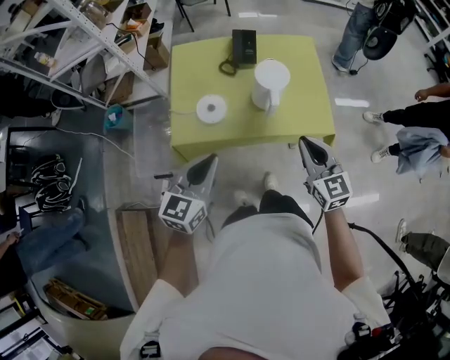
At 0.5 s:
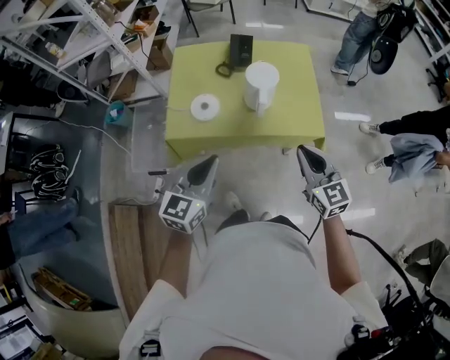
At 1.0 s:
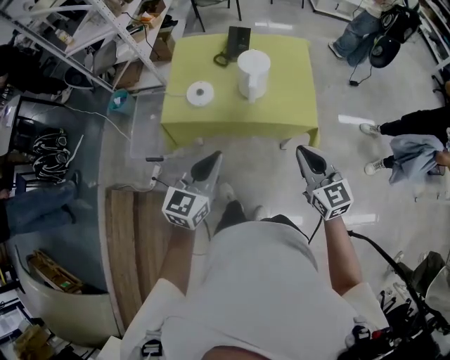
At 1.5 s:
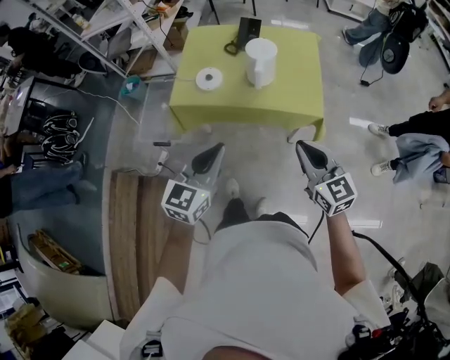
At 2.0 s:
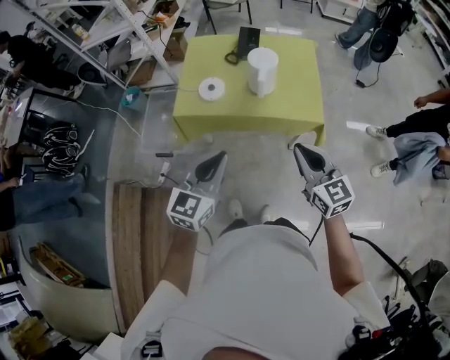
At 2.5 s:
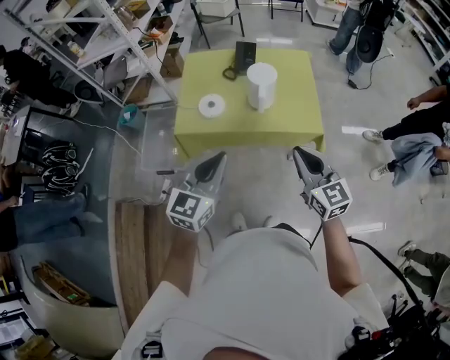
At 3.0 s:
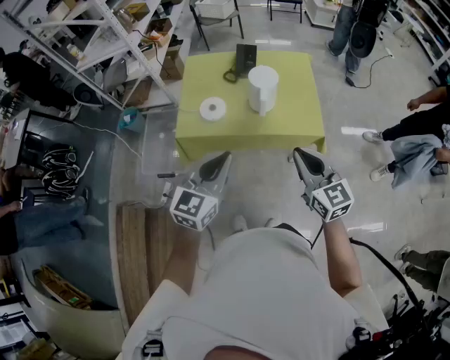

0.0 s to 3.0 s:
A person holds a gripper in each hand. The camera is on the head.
0.0 to 1.5 s: The two grippers go approximately 20 cm backward and to the right.
1.5 to 3.0 s: The right gripper shifts approximately 5 cm to the left. Meanwhile the left gripper moves forward, some 5 cm.

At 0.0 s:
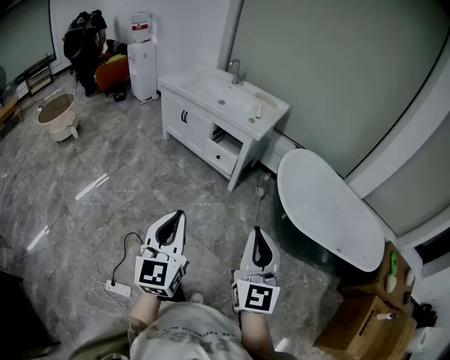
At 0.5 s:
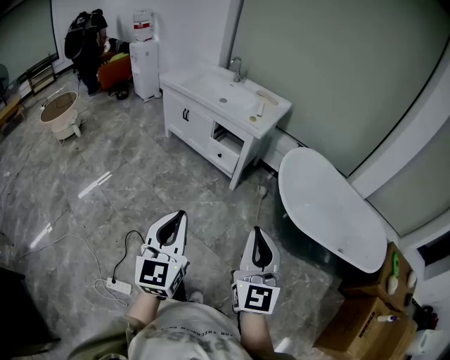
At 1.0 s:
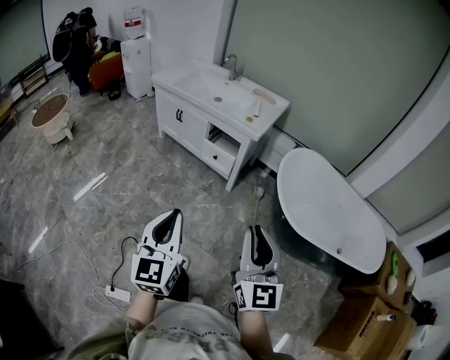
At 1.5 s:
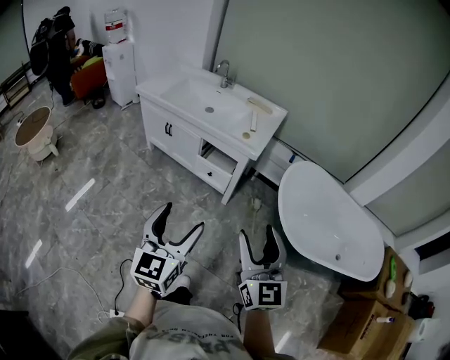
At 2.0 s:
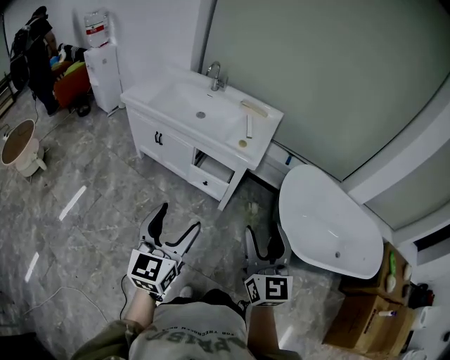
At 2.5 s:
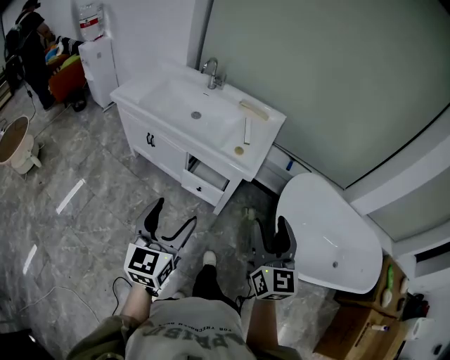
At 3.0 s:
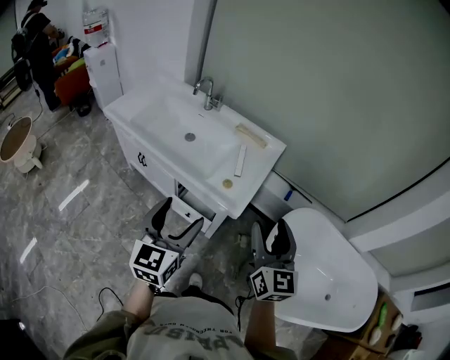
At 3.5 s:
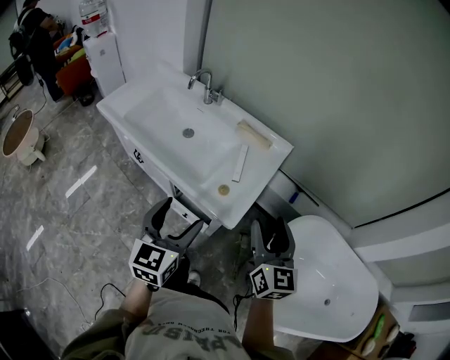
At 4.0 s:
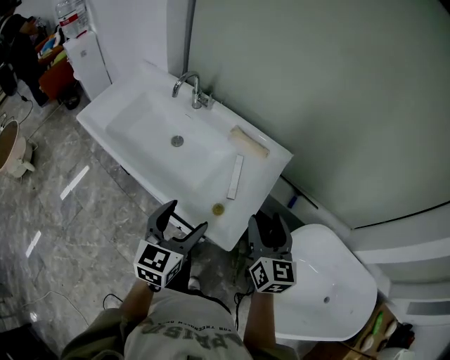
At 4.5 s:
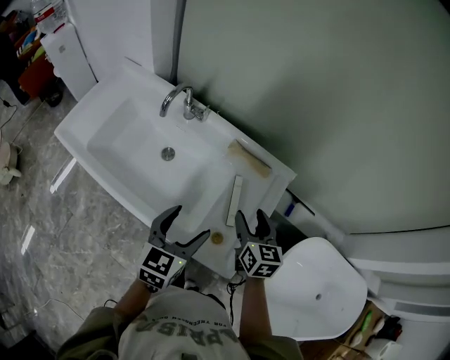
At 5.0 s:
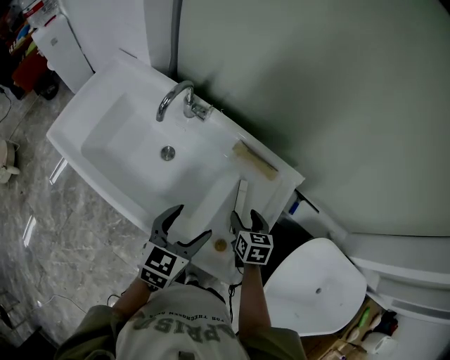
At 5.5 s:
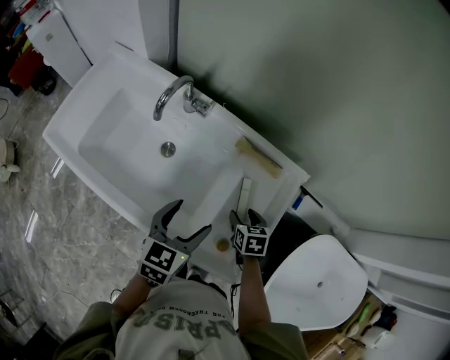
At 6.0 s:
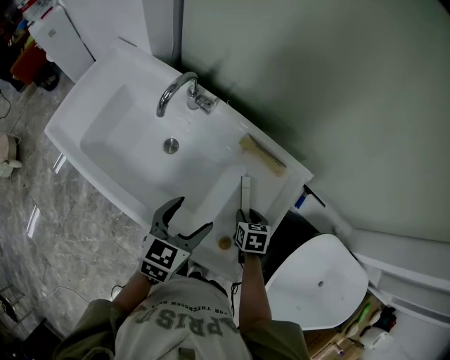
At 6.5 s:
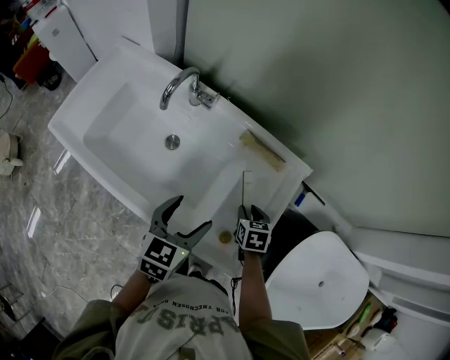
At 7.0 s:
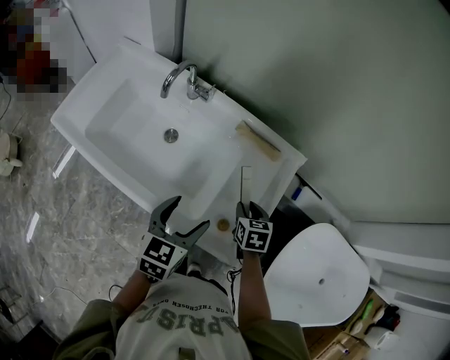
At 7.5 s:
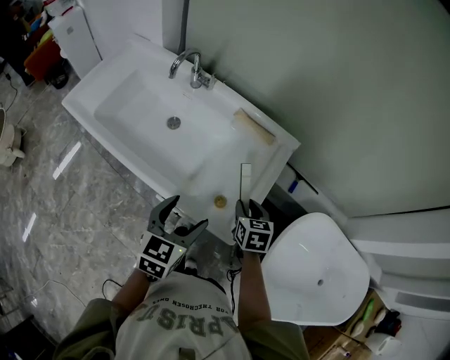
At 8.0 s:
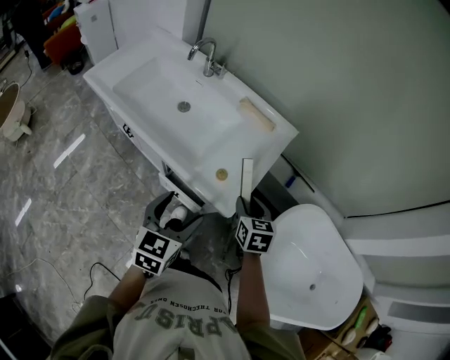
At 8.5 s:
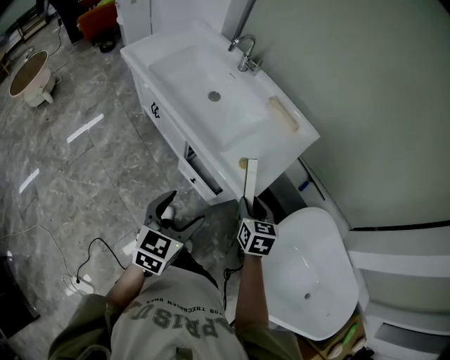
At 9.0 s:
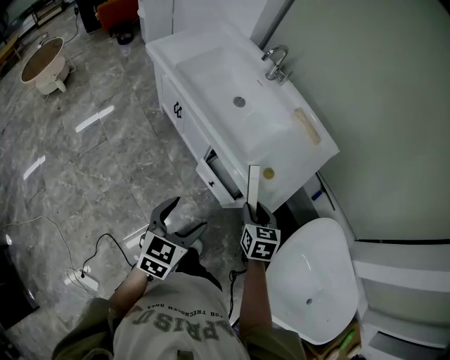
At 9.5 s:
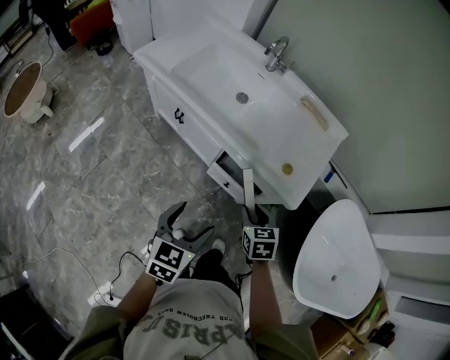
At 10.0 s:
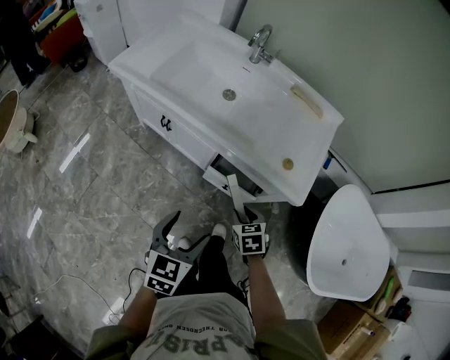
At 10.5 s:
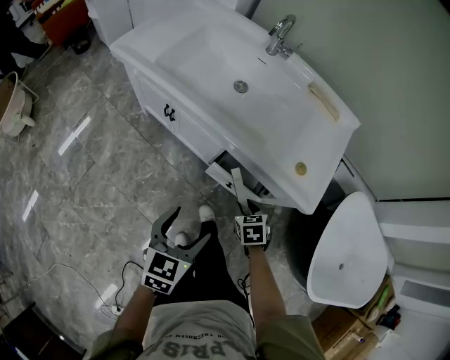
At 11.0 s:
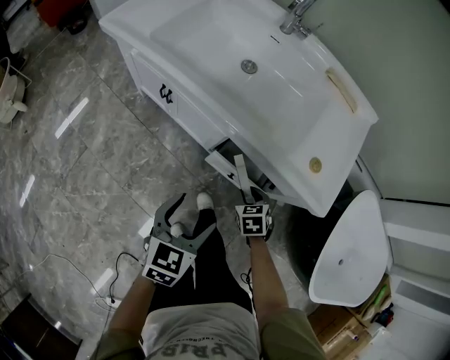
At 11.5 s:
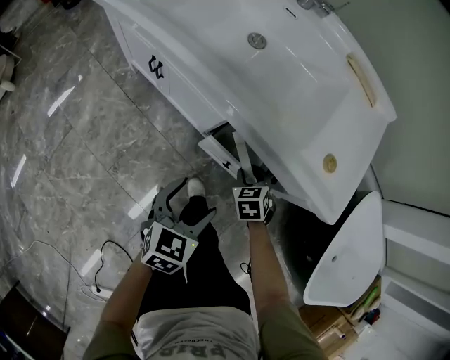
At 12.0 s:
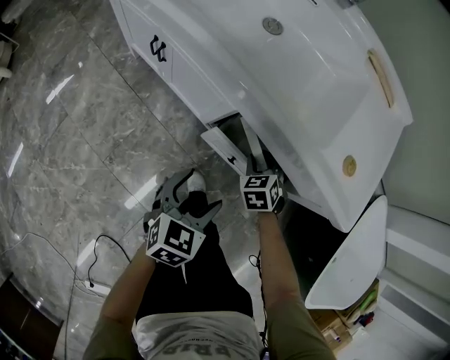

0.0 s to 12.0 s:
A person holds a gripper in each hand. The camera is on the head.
0.0 to 2.0 s: The grippers both shift forward by approximately 35 cm. The right gripper opens up. Meanwhile the left gripper opens its fingers.
2.0 to 4.0 s: Both grippers are carried forward, approximately 50 cm.
4.0 to 6.0 s: The right gripper heads downward and forward, covering roughly 30 cm, tips its fingers downward by roughly 50 degrees, and closes, while the left gripper heads forward and downward, covering roughly 20 cm.
6.0 to 8.0 s: The left gripper goes roughly 25 cm backward. Meanwhile the right gripper travels backward and upward by roughly 25 cm, and changes its angle by some 20 degrees.
8.0 to 10.0 s: The right gripper shifts roughly 30 cm to the left, downward and backward. Meanwhile the left gripper shifts roughly 25 cm to the left and backward.
10.0 to 12.0 s: The right gripper heads downward and forward, covering about 30 cm, and rotates some 20 degrees, while the left gripper is displaced downward by approximately 25 cm.

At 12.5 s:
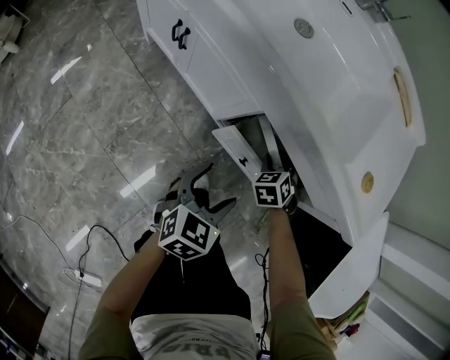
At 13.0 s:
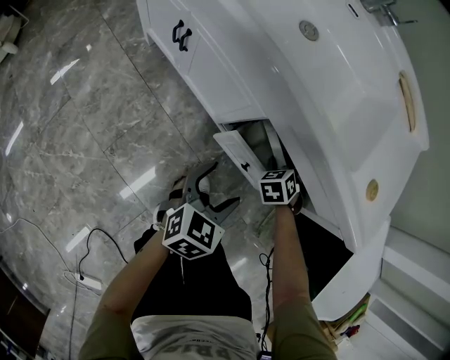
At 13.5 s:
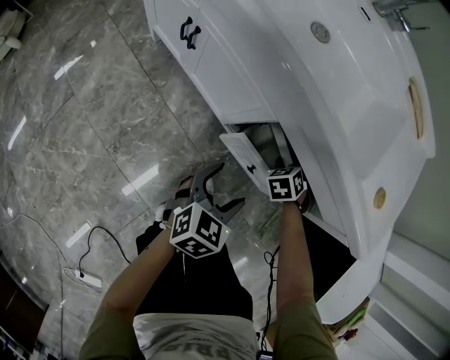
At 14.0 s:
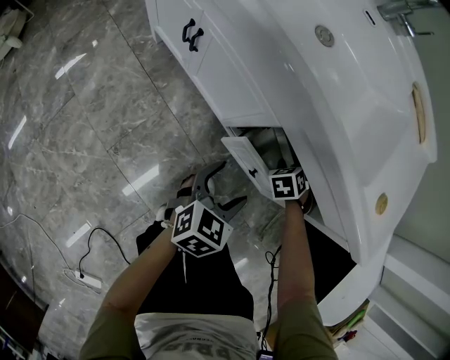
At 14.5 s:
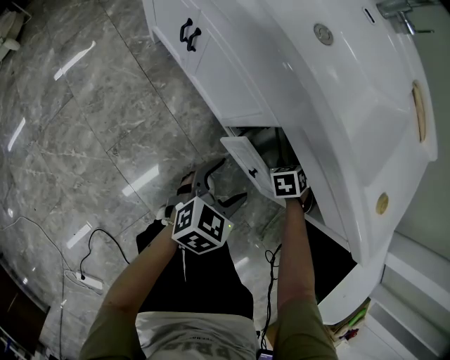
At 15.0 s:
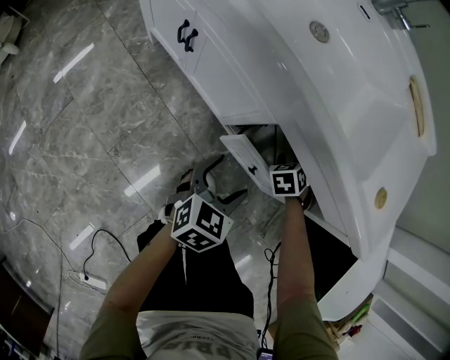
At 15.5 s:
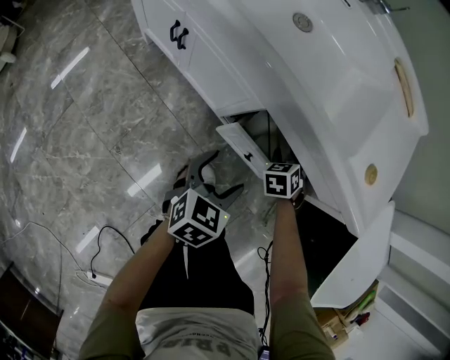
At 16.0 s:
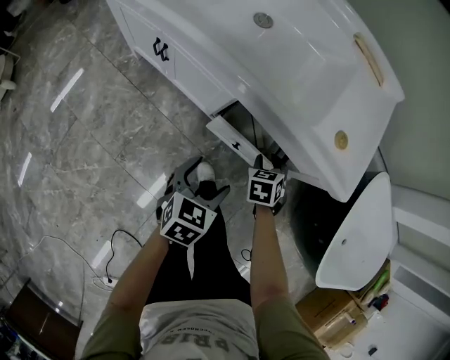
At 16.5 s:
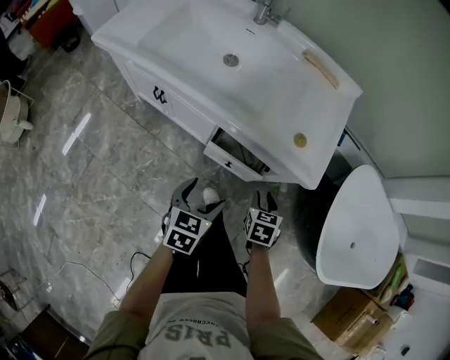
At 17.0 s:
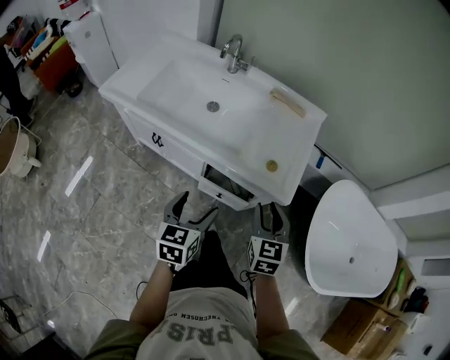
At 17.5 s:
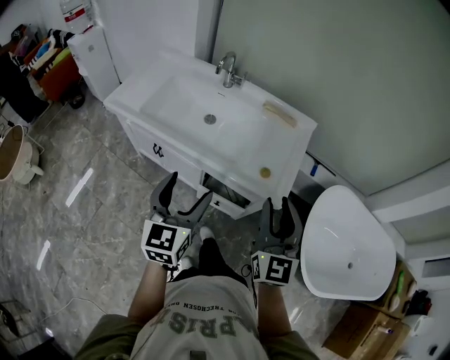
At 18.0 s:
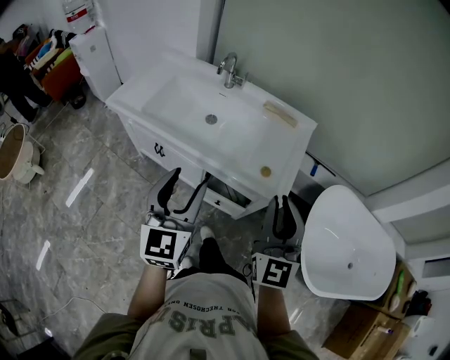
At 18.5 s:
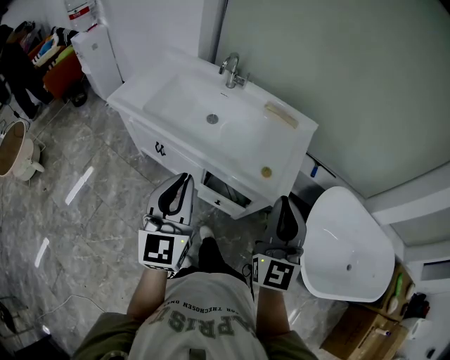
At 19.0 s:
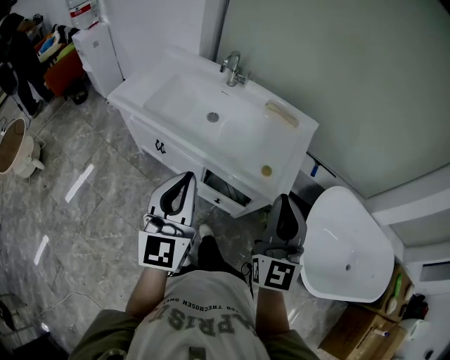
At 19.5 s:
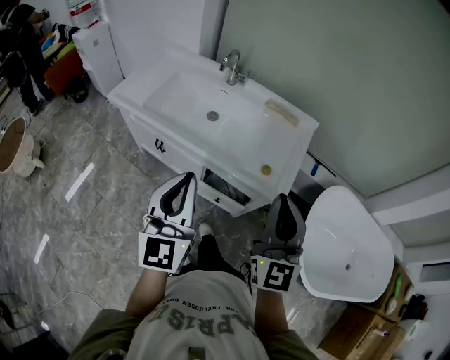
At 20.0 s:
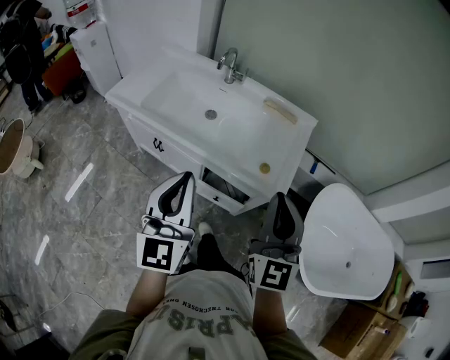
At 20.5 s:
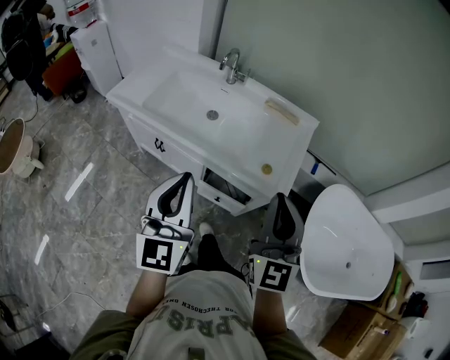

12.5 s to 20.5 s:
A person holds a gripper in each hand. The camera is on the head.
12.5 to 14.5 s: The right gripper heads downward, covering about 5 cm. The left gripper ends up approximately 5 cm from where it was.
14.5 to 16.5 s: The right gripper goes some 35 cm upward, backward and to the right, and twists approximately 50 degrees clockwise, seen from behind. Meanwhile the left gripper heads upward, covering roughly 20 cm.
16.5 to 18.5 s: Both grippers move upward, some 40 cm. The left gripper tilts its fingers roughly 40 degrees upward, and closes its fingers. The right gripper tips its fingers upward by about 60 degrees, and closes its fingers.
18.5 to 20.5 s: There are only small adjustments of the grippers.

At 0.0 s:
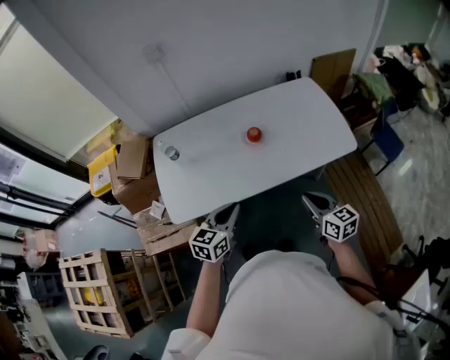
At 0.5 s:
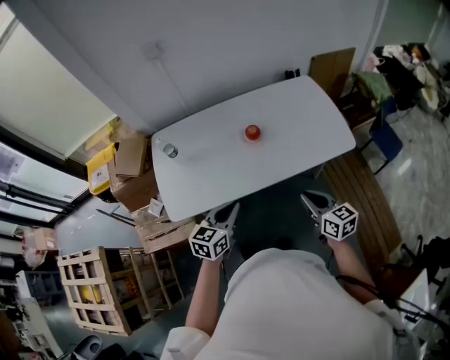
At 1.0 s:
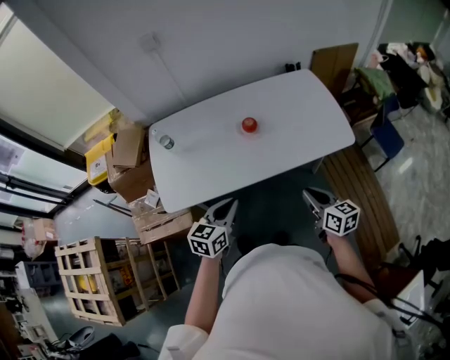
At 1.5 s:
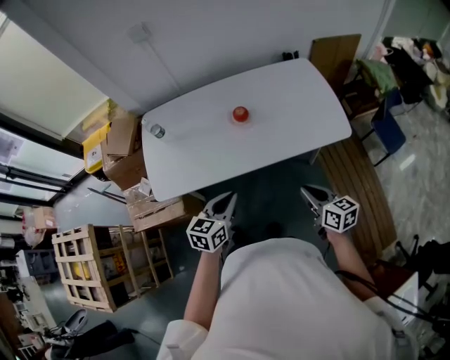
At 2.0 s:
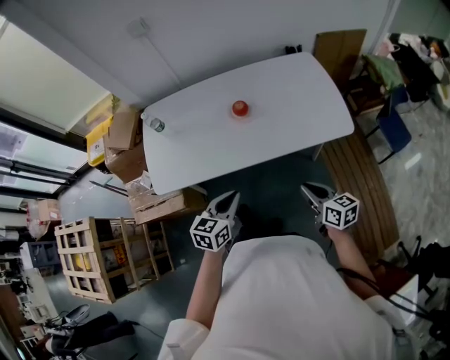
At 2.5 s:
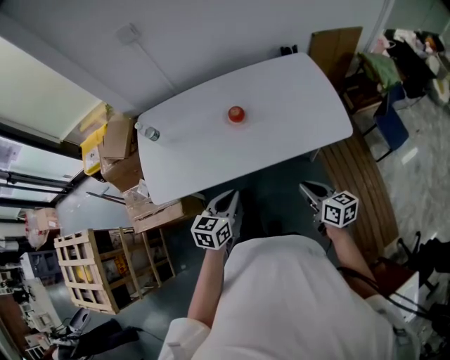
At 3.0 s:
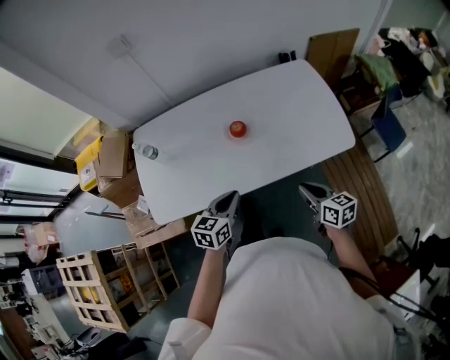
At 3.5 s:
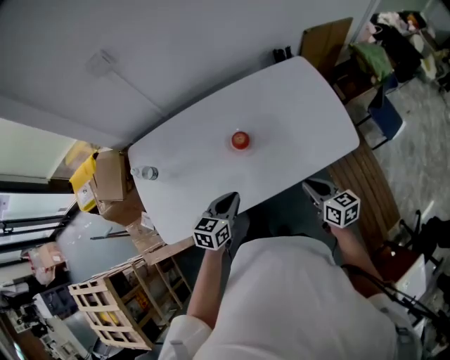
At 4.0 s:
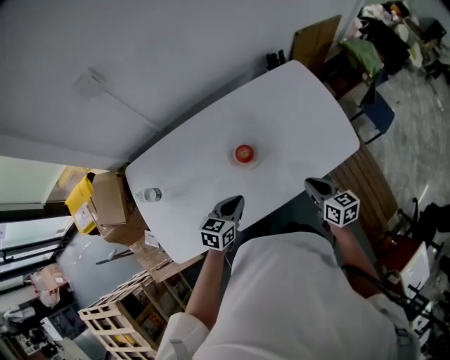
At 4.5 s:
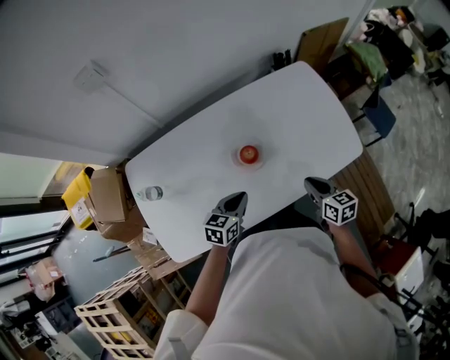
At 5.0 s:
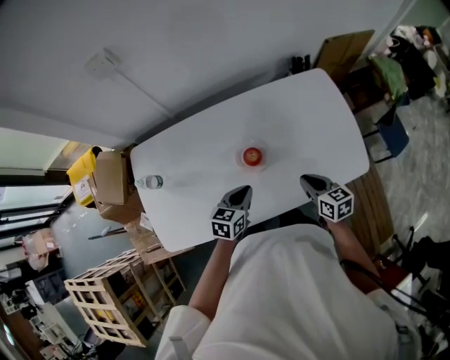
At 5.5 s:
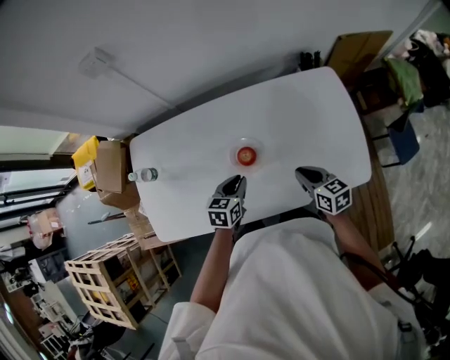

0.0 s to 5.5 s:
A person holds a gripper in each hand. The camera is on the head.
0.0 to 2.0 s: The left gripper shifts some 10 cm to the right. Meanwhile the right gripper shifts about 10 cm to the right and downward.
2.0 to 3.5 s: Both grippers travel together forward, some 20 cm.
3.5 to 5.5 s: The right gripper travels forward by approximately 15 cm; the left gripper shifts about 15 cm forward and downward.
